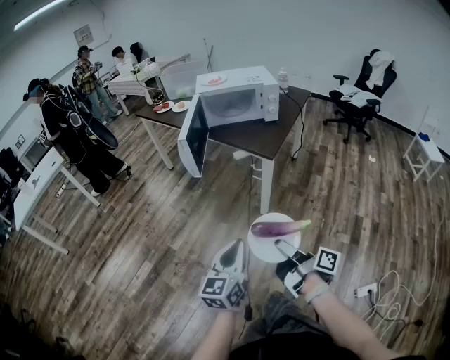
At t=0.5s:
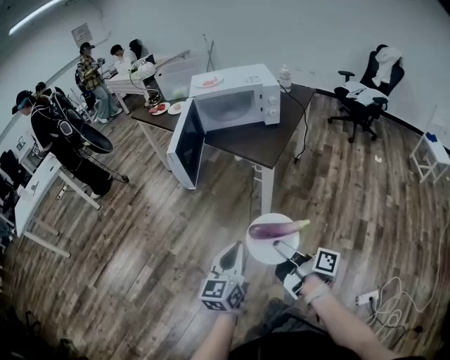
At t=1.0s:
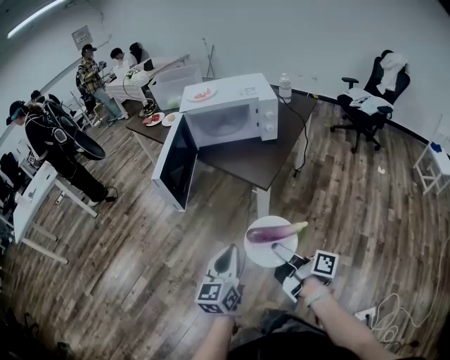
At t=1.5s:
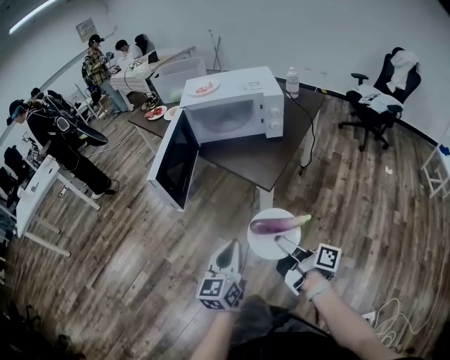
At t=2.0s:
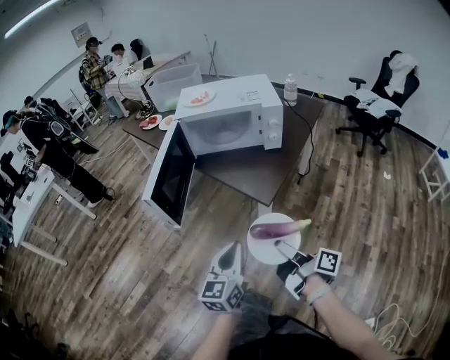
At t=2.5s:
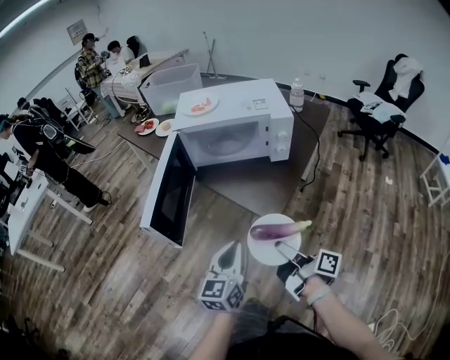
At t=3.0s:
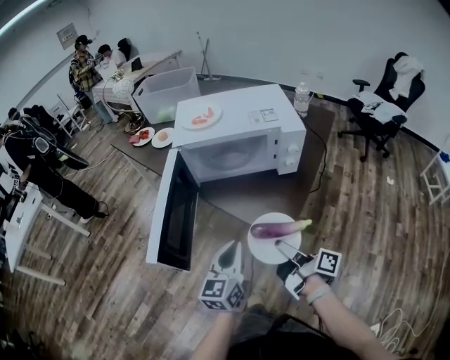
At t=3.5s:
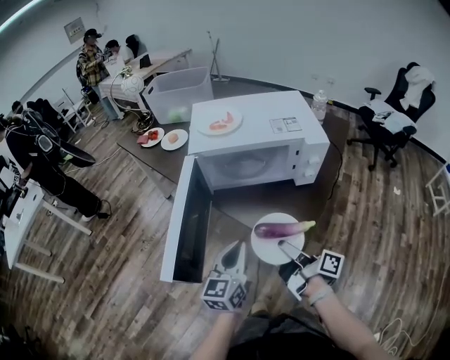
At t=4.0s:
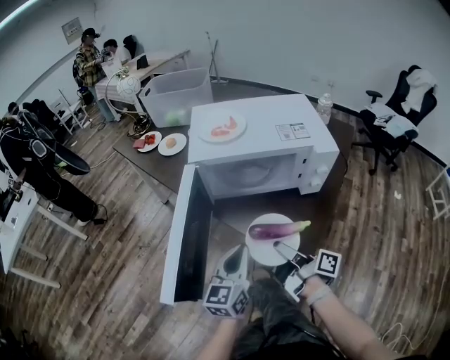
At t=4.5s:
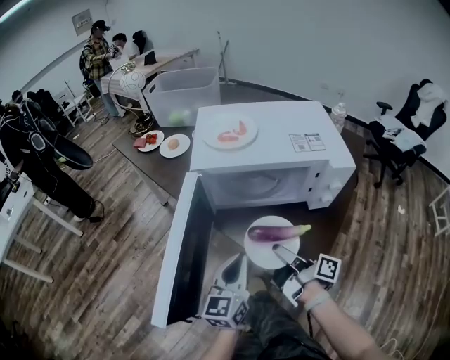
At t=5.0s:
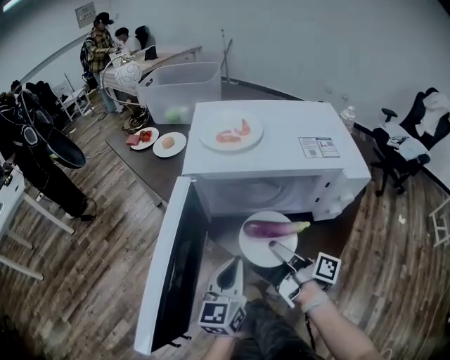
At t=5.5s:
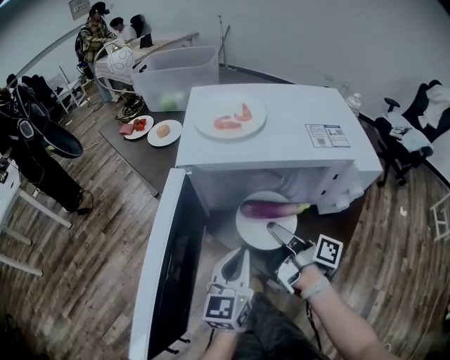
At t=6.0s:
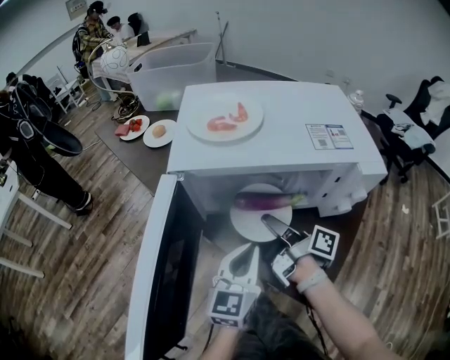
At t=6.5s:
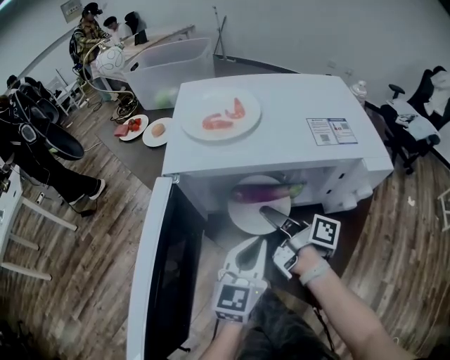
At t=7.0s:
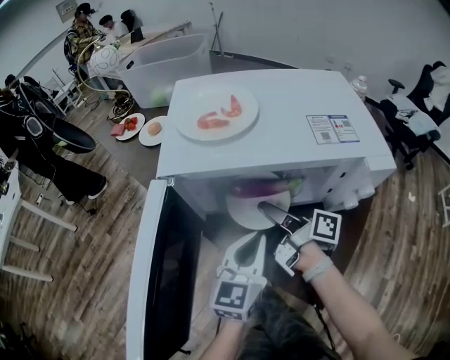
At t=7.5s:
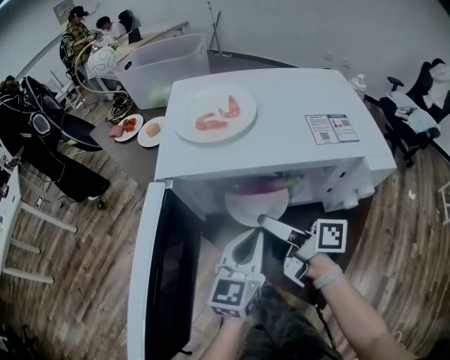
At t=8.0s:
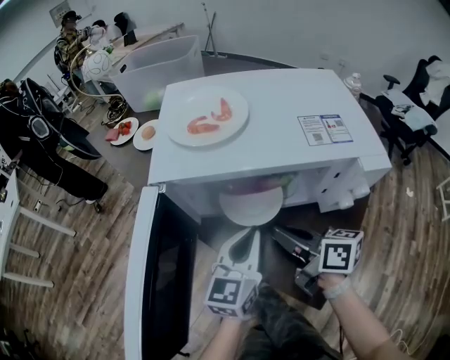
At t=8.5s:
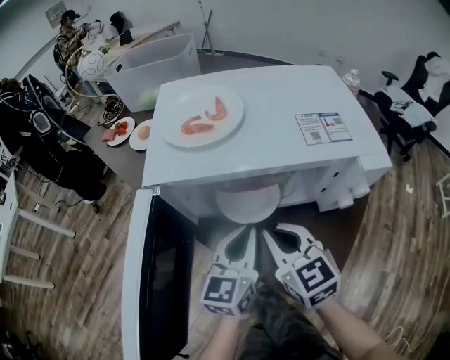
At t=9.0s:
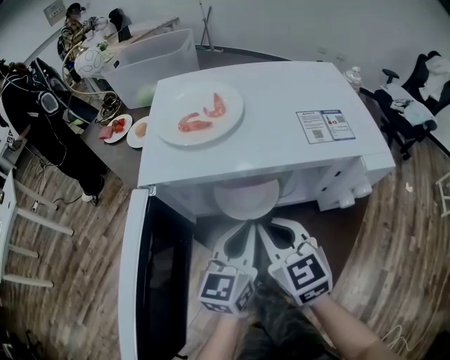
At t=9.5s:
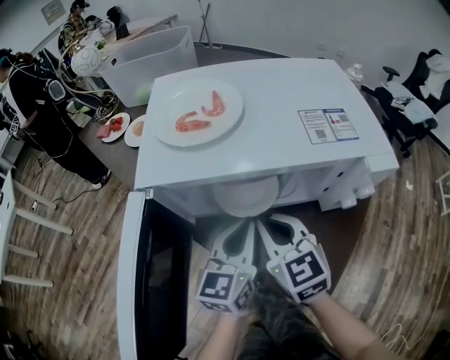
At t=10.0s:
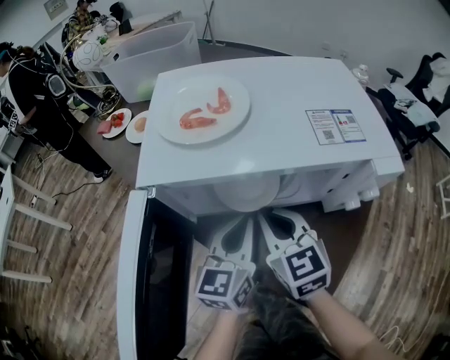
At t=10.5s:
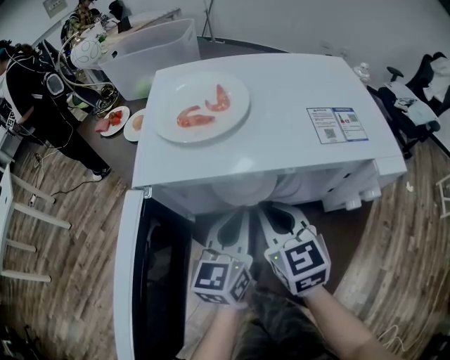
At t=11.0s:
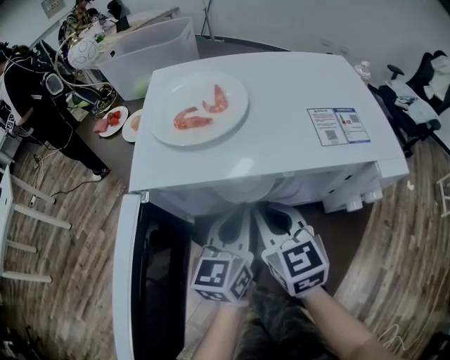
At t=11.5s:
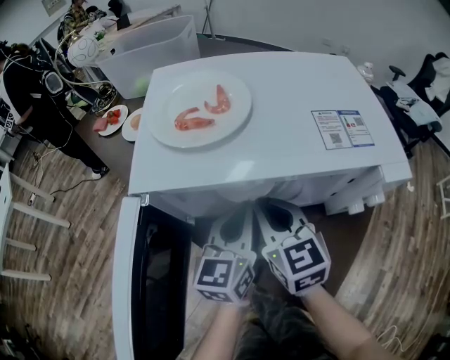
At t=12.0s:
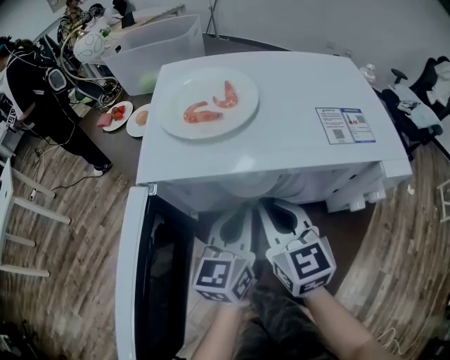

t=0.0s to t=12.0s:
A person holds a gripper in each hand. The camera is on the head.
t=0.0s to t=2.0s: Both grippers move forward and to the right, some 25 cm.
t=2.0s to t=4.0s: Both grippers travel together forward, roughly 25 cm.
t=4.0s to t=6.0s: The right gripper shifts roughly 20 cm forward. The left gripper heads forward and downward, covering about 10 cm.
t=6.0s to t=8.0s: The right gripper turns by some 40 degrees, and opens, then closes again.
t=8.0s to t=10.0s: The right gripper ends up roughly 5 cm from where it was, and rotates around the line of its fingers by about 50 degrees, counterclockwise from behind.
t=10.0s to t=12.0s: There are only small adjustments of the grippers.

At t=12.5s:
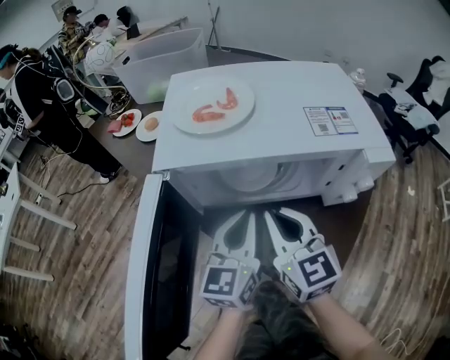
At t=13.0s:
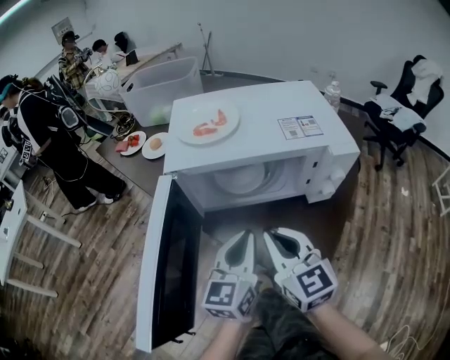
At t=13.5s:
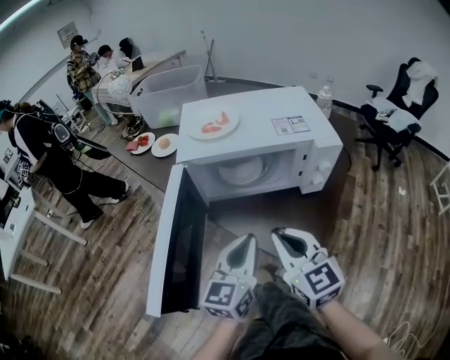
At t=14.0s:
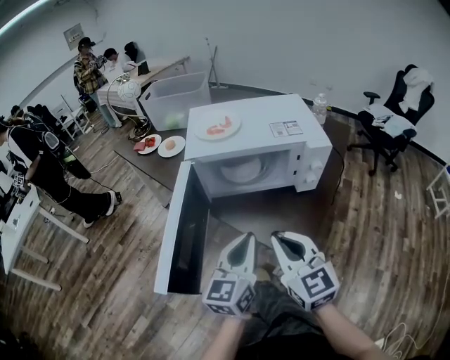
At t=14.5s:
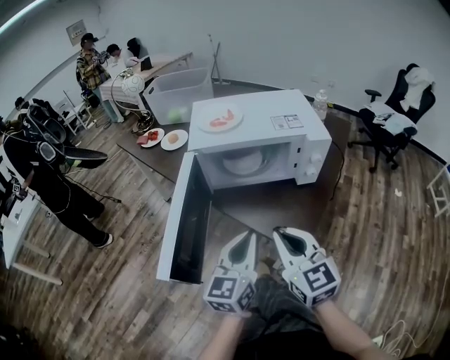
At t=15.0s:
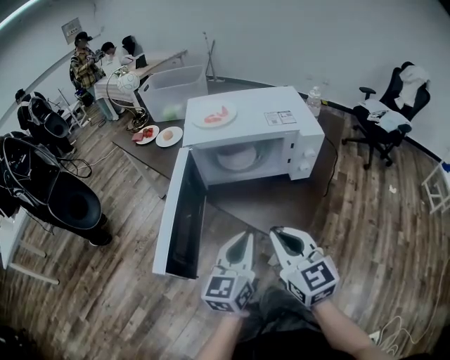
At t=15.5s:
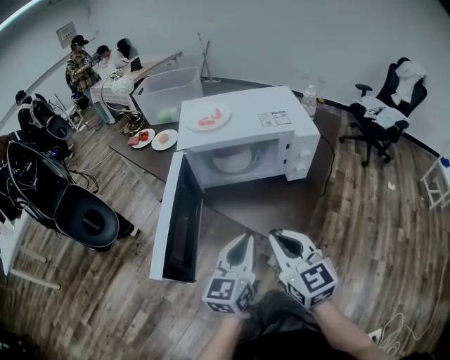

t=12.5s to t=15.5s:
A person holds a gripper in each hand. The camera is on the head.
t=12.5s to t=14.0s: Both grippers move backward and upward, about 20 cm.
t=14.0s to t=15.5s: There are only small adjustments of the grippers.

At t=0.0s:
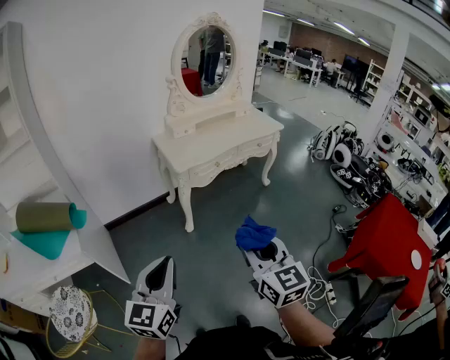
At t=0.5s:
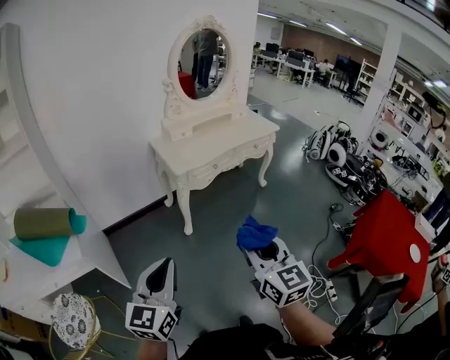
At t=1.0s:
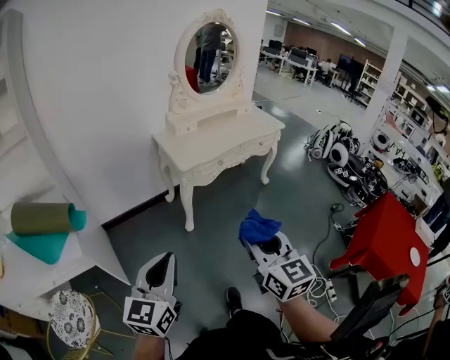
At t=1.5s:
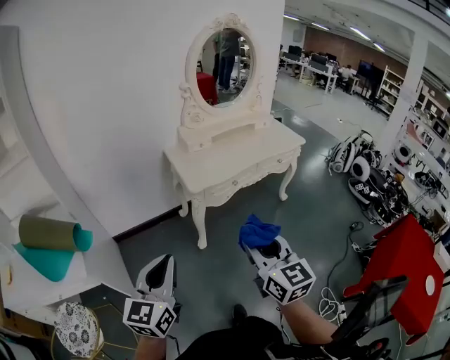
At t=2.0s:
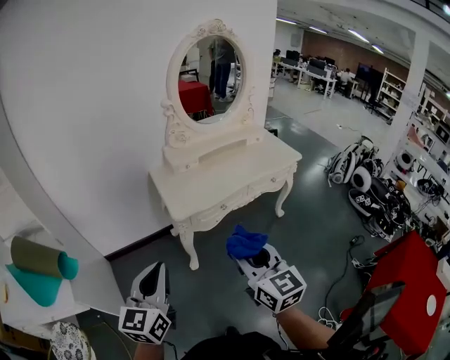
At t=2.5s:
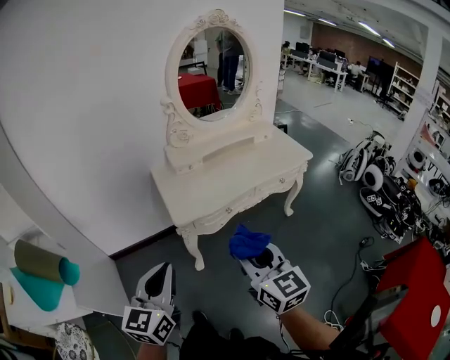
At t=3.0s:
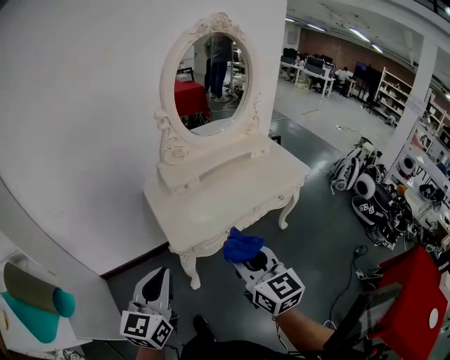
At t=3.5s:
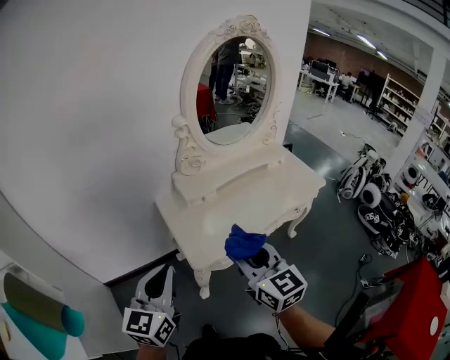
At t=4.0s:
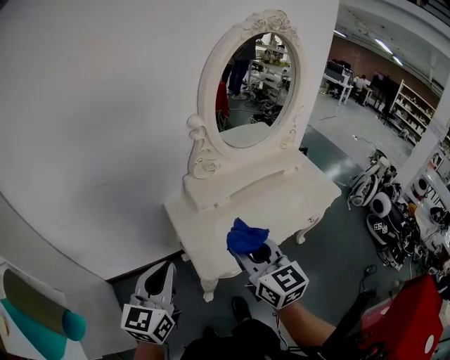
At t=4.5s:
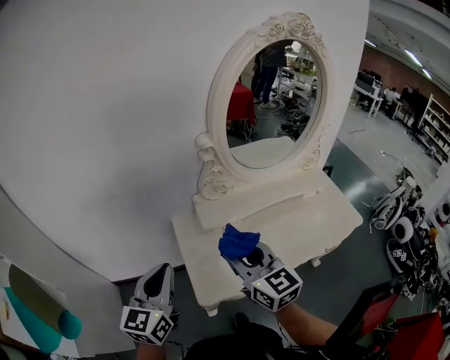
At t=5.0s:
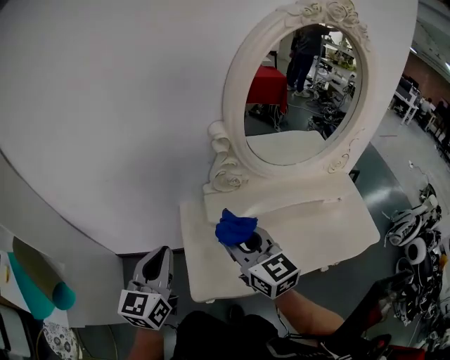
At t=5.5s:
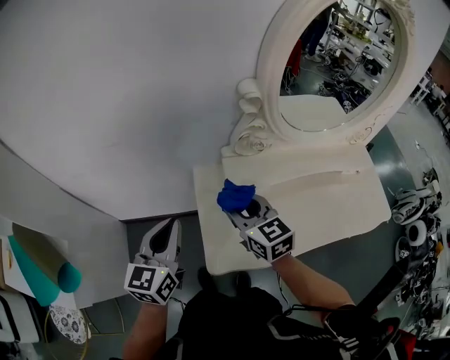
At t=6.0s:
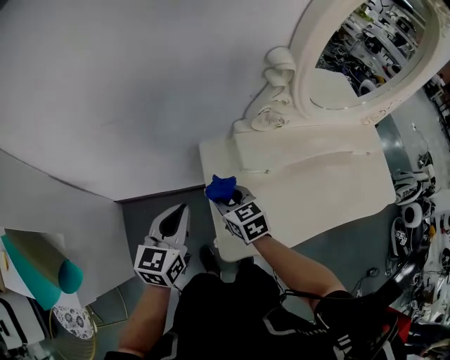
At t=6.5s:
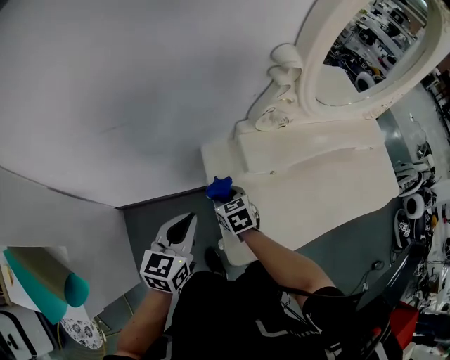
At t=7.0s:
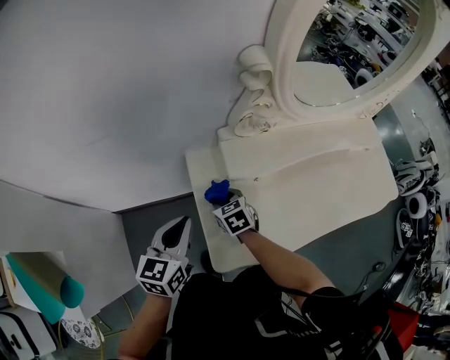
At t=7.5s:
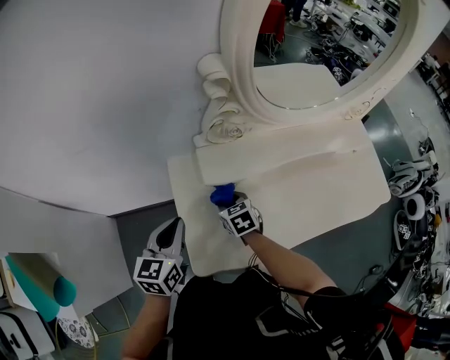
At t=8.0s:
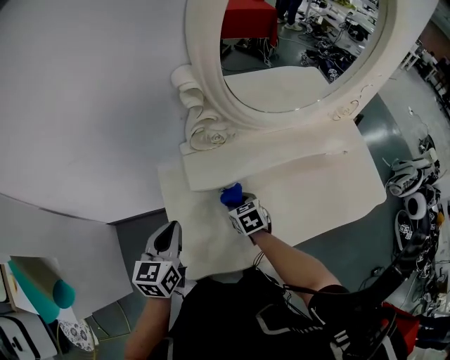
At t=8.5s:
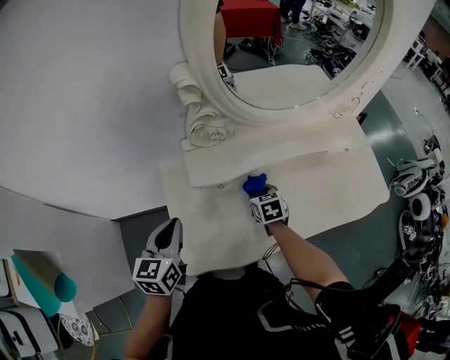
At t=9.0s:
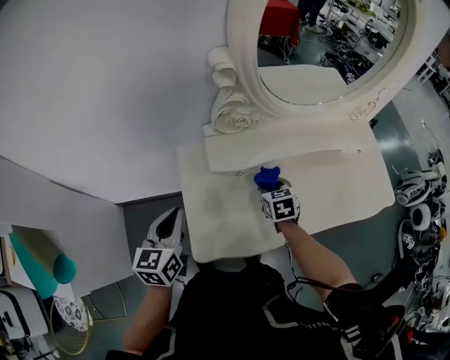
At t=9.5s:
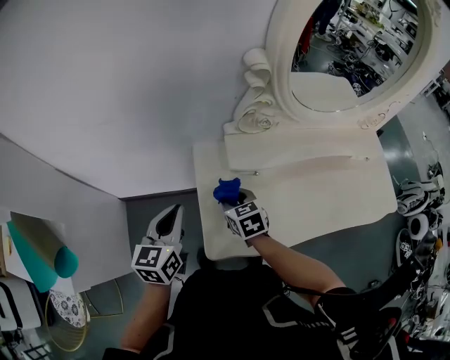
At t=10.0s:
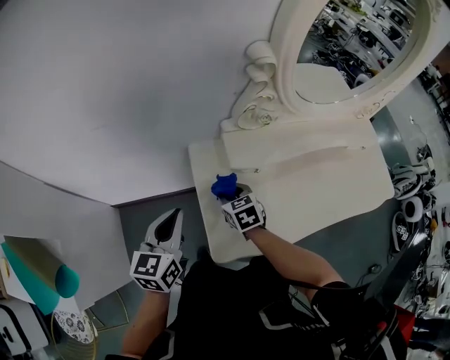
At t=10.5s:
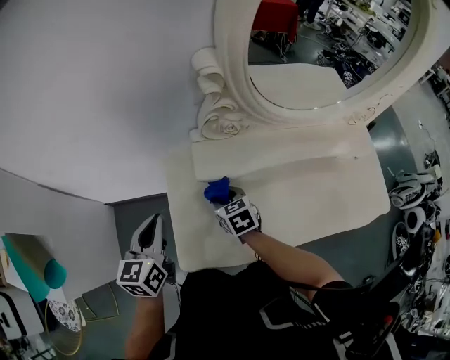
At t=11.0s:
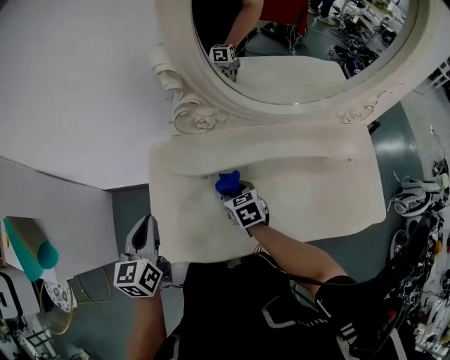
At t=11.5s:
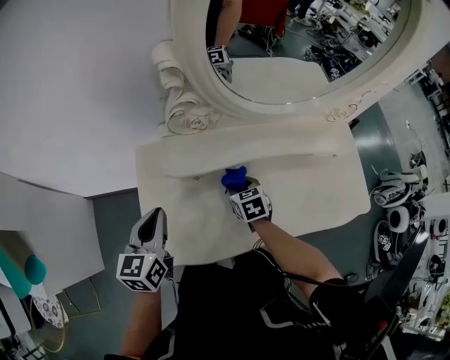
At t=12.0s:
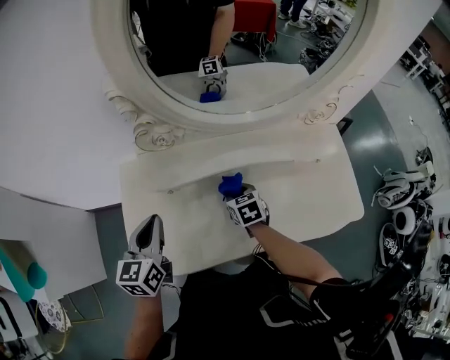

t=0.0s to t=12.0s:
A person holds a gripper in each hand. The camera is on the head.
t=0.0s to t=2.0s: Both grippers move forward, some 30 cm.
t=2.0s to t=4.0s: The two grippers go about 35 cm forward.
t=4.0s to t=6.0s: The right gripper is displaced downward and forward by about 35 cm, and changes its angle by approximately 40 degrees. The left gripper heads forward and downward, covering roughly 25 cm.
t=6.0s to t=8.0s: The left gripper is displaced to the right by some 15 cm. The right gripper shifts approximately 25 cm to the right and downward.
t=8.0s to t=10.0s: Both grippers travel together to the left, roughly 15 cm.
t=10.0s to t=12.0s: The two grippers go about 30 cm to the right.
